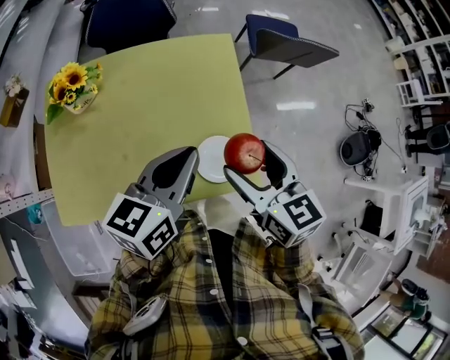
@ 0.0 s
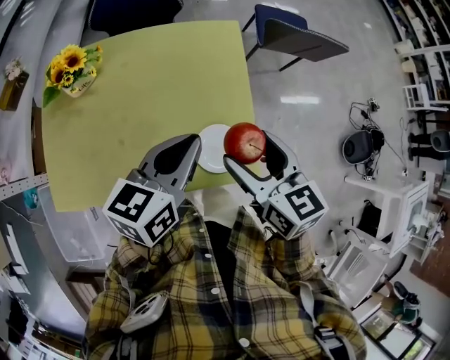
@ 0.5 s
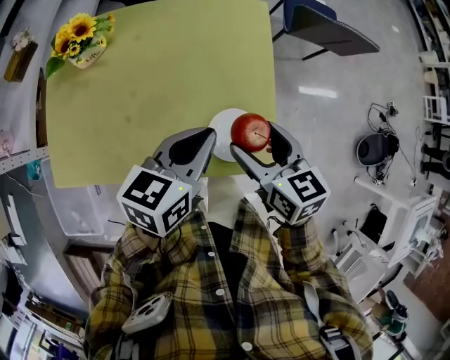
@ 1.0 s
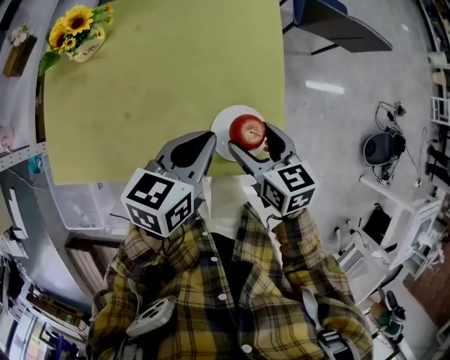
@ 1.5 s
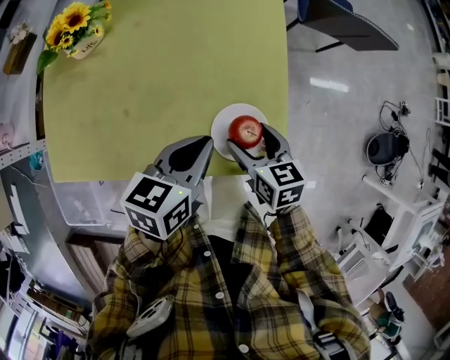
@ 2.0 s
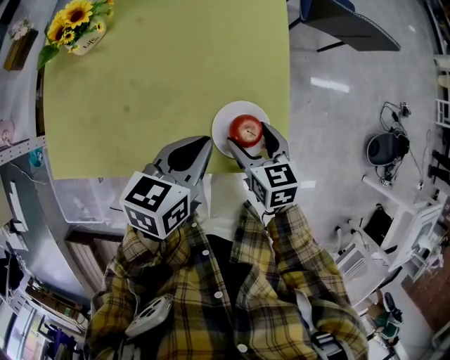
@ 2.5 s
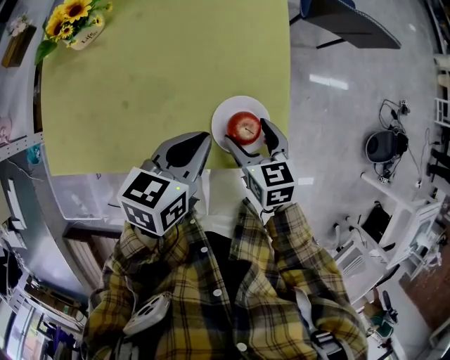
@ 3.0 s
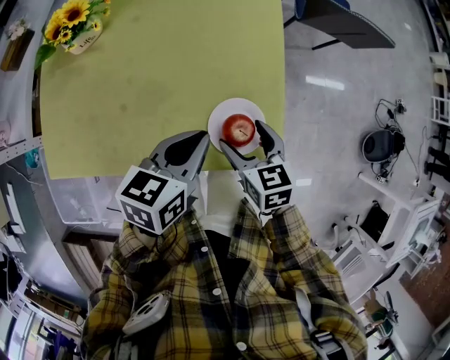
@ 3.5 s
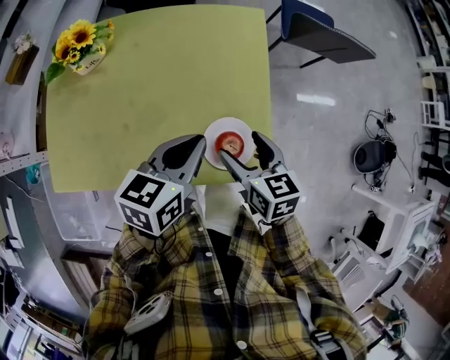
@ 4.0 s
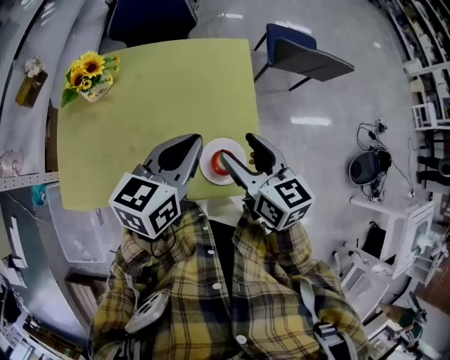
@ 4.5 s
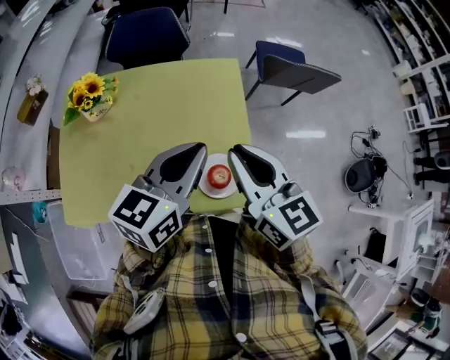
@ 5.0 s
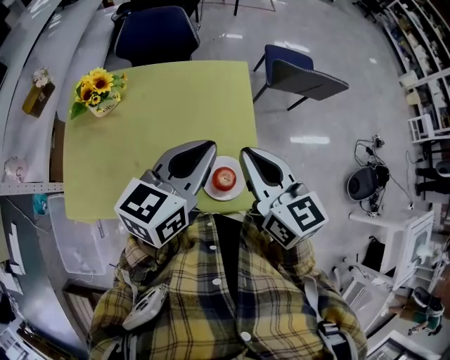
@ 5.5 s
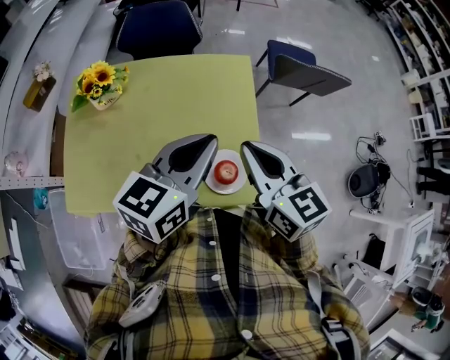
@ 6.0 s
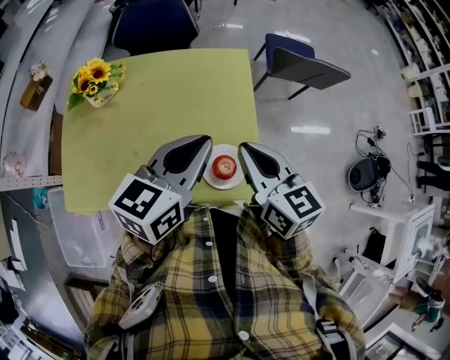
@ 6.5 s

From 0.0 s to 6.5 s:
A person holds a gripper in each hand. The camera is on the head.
From 0.0 s to 2.0 s: The grippers both shift downward by approximately 20 cm.
From 2.0 s to 4.5 s: Both grippers travel together upward, about 15 cm.
From 4.5 s to 6.5 s: The right gripper closes up.

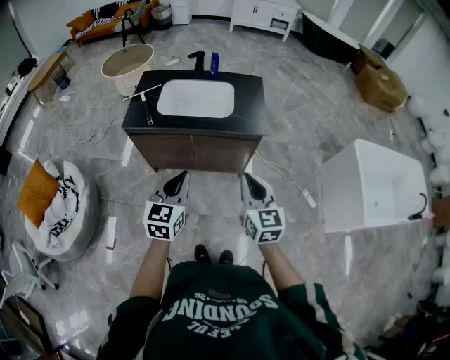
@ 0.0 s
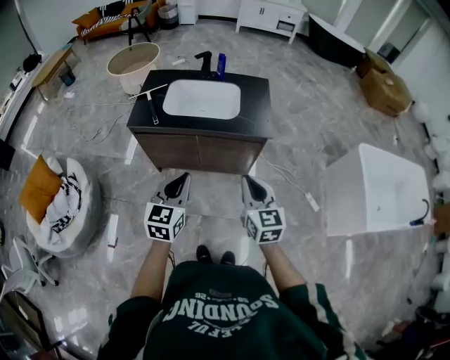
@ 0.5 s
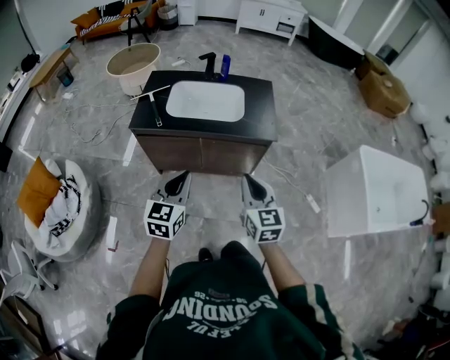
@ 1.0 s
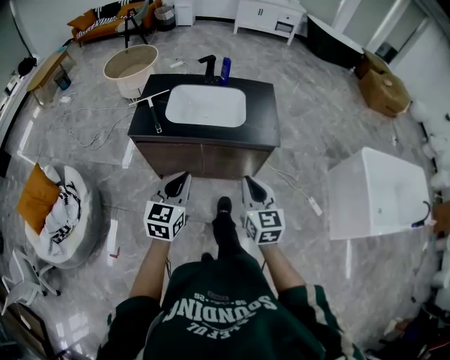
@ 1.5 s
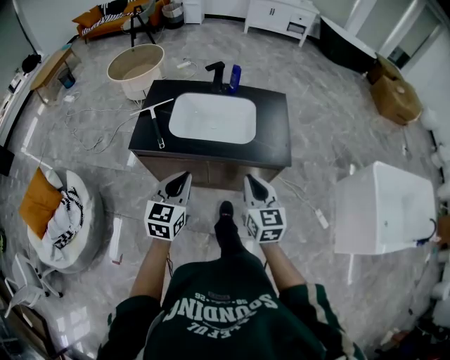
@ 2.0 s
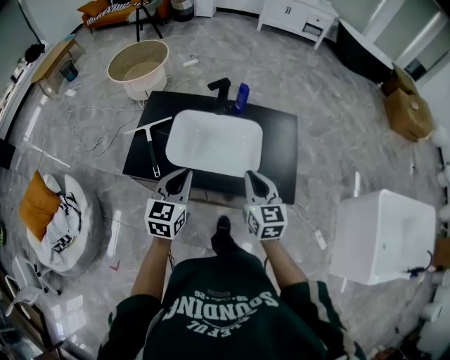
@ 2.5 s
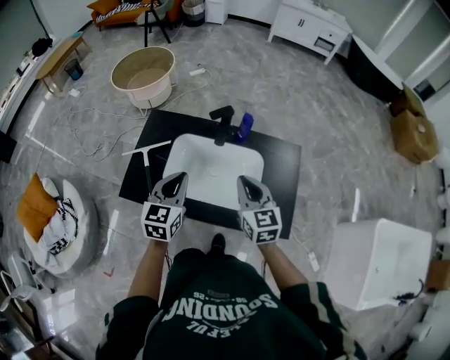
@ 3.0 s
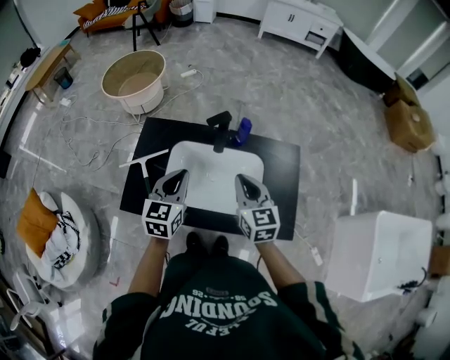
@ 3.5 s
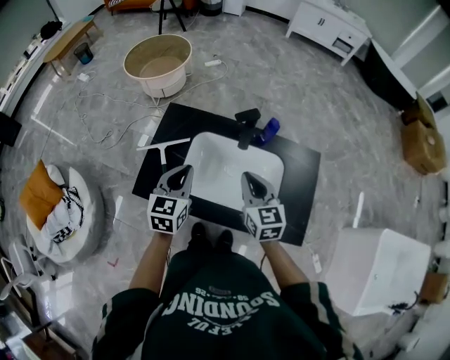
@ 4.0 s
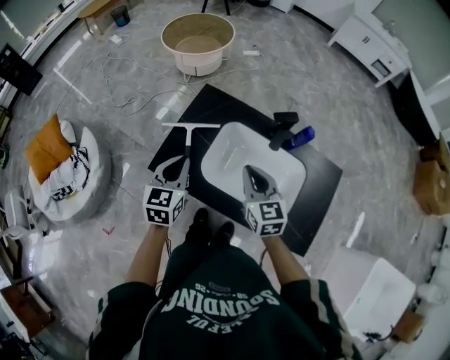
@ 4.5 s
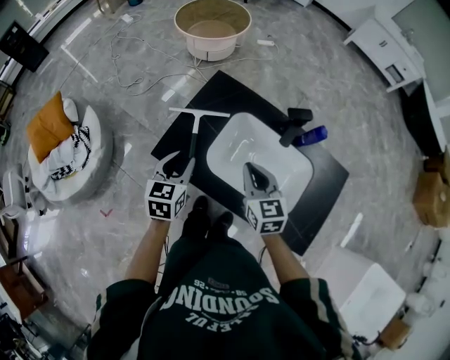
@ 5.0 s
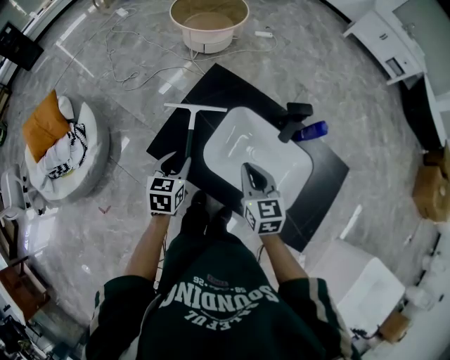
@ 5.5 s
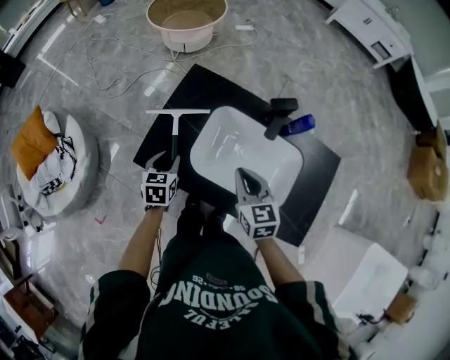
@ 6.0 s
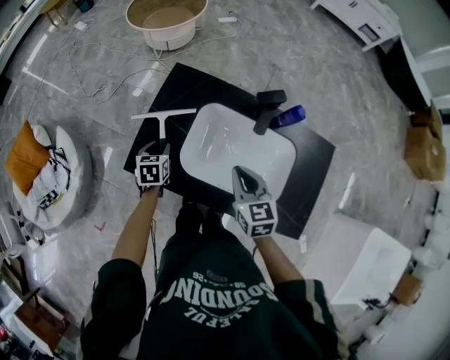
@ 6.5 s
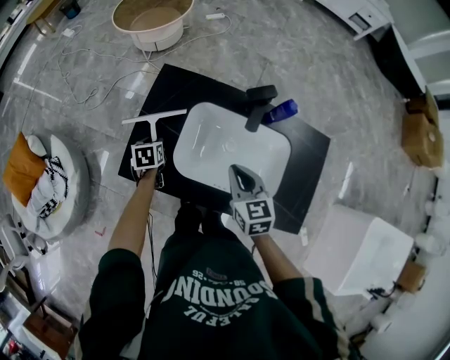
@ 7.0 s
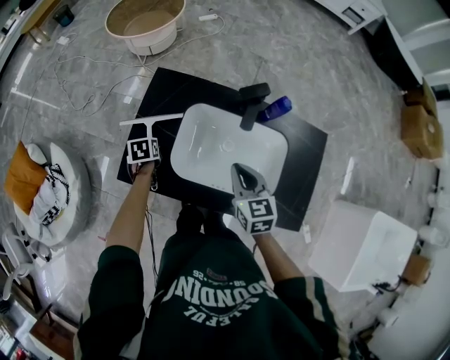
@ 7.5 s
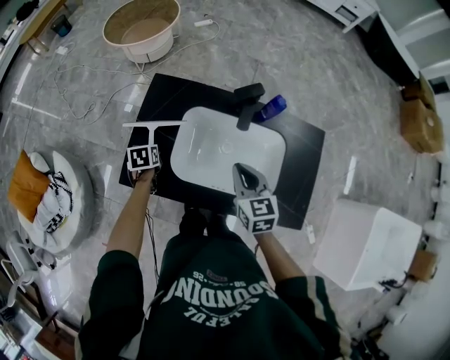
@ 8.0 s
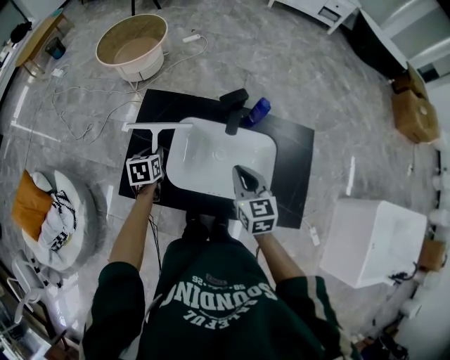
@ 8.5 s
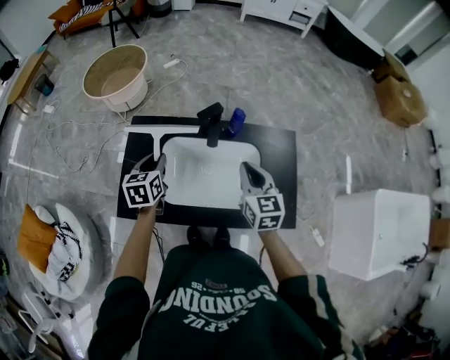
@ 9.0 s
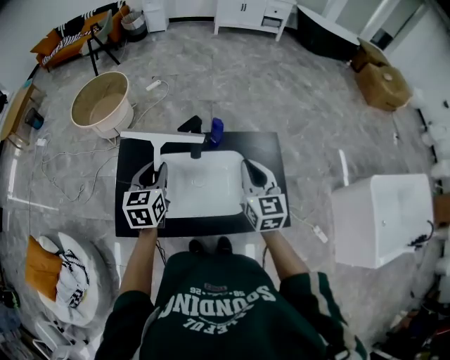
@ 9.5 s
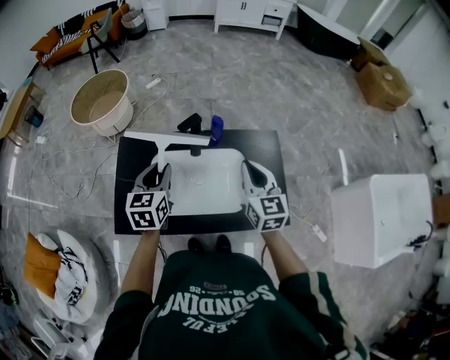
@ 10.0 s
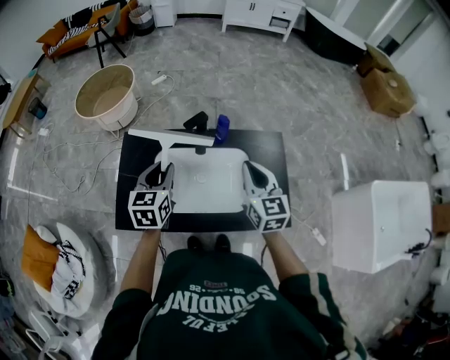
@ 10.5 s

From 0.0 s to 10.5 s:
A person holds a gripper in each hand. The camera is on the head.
From 0.0 s to 2.0 s: The grippers both shift forward and to the left by roughly 20 cm.
From 2.0 s to 4.0 s: Both grippers move forward, some 35 cm.
From 4.0 s to 6.5 s: The left gripper goes some 25 cm downward and to the left, rotates roughly 40 degrees, and opens up. The right gripper is displaced downward and to the left by about 10 cm.
From 6.5 s to 8.5 s: The left gripper travels upward and to the right by roughly 10 cm, while the right gripper moves to the right, approximately 5 cm.
From 8.5 s to 10.5 s: The right gripper travels to the right and upward by some 15 cm, and rotates about 20 degrees. The left gripper travels upward and to the right by some 25 cm, and changes its angle by some 30 degrees.

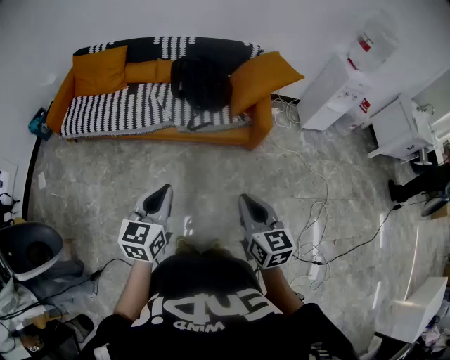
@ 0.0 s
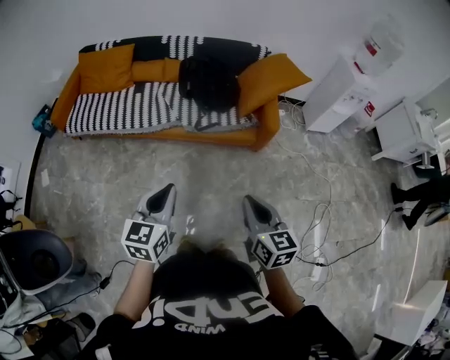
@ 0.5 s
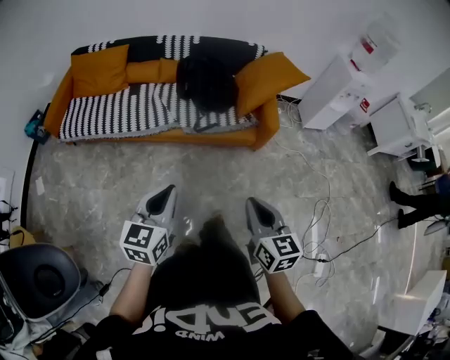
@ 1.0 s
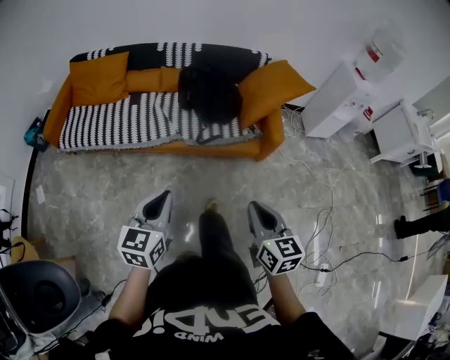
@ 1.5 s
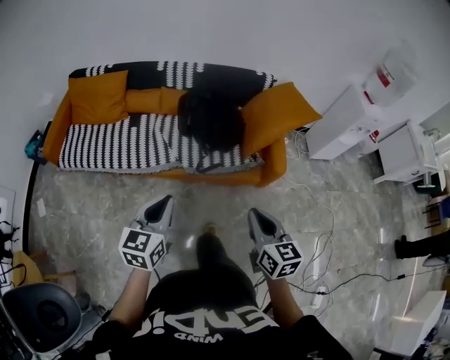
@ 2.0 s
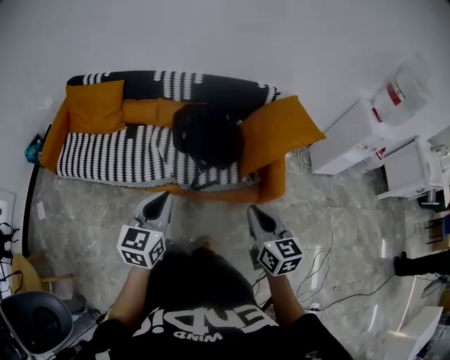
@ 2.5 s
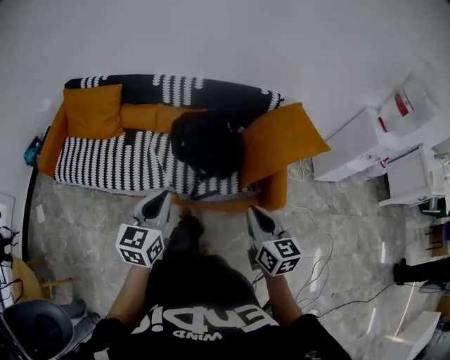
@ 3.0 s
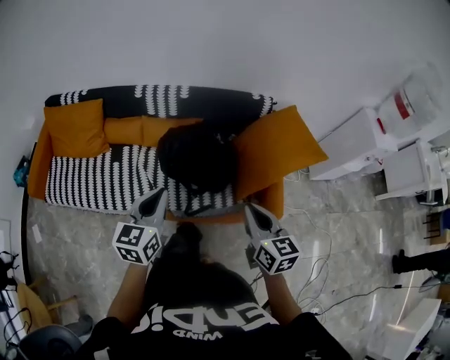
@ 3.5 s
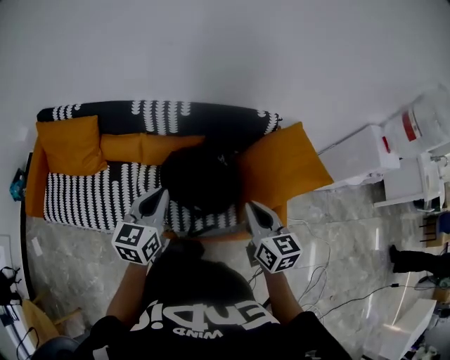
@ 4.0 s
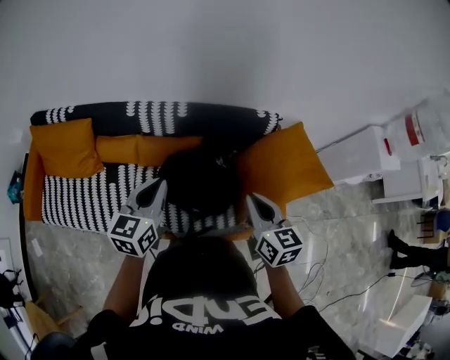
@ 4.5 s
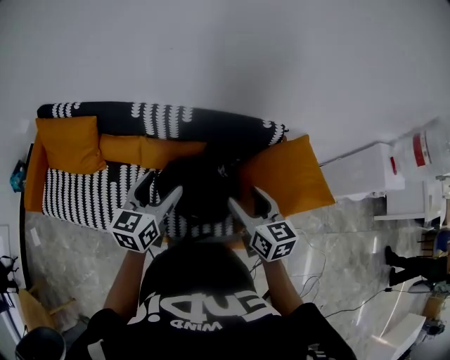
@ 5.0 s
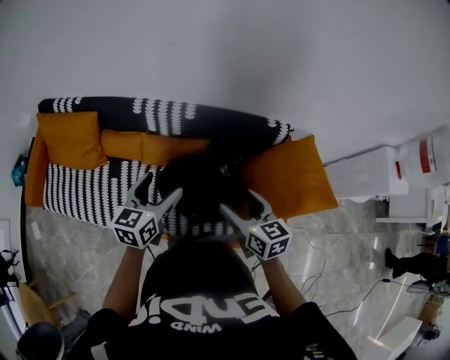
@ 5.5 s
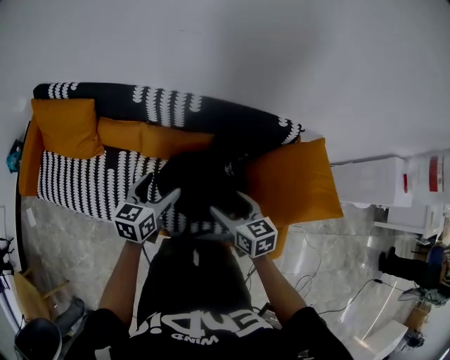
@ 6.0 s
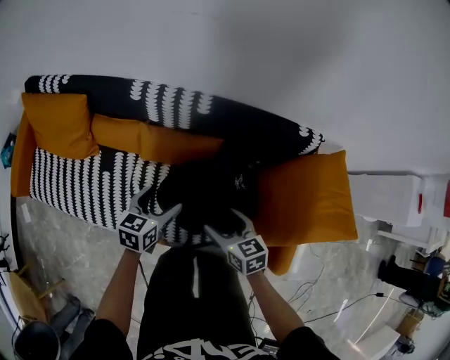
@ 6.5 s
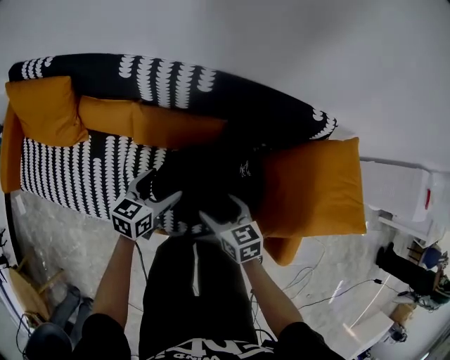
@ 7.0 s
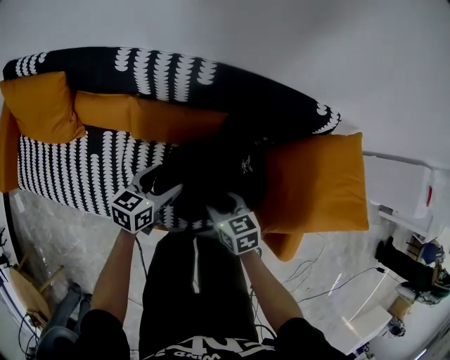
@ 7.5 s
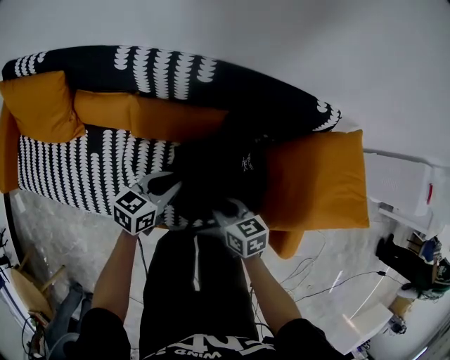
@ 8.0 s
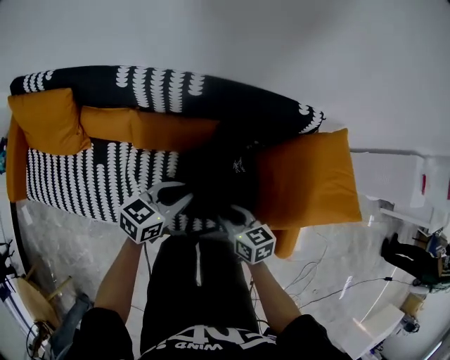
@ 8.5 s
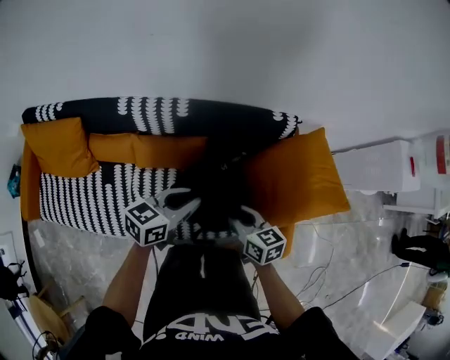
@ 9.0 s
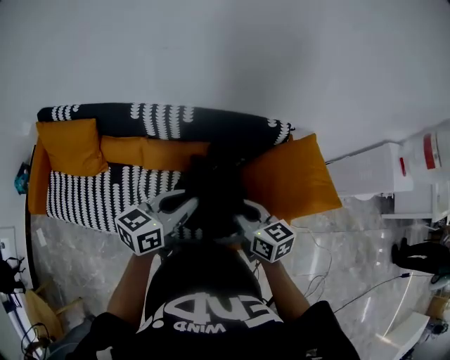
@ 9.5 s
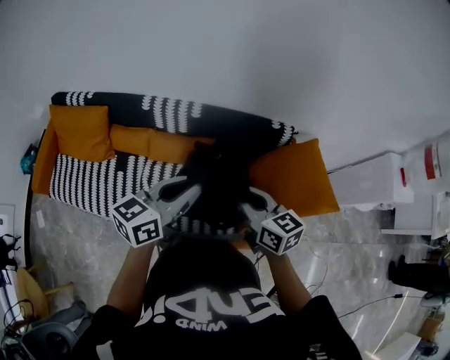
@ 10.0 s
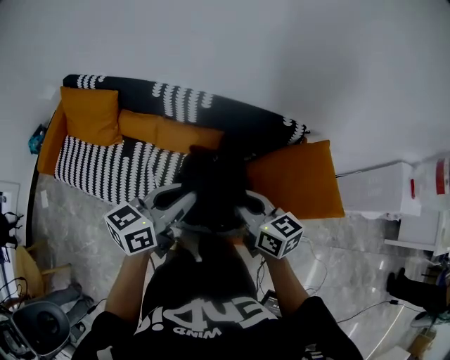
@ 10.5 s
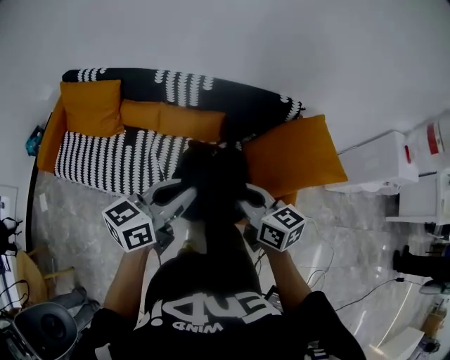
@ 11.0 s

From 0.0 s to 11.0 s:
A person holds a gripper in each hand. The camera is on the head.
From 0.0 s to 2.0 s: The grippers both shift forward by roughly 25 cm.
From 2.0 s to 3.5 s: The grippers both shift forward by about 35 cm.
From 3.5 s to 5.5 s: Both grippers move forward, about 30 cm. The right gripper opens. Meanwhile the left gripper opens its fingers.
From 5.5 s to 7.5 s: Both grippers travel together downward, approximately 30 cm. The left gripper turns by roughly 20 degrees. The right gripper swivels some 20 degrees, and closes.
From 7.5 s to 9.0 s: The grippers both shift upward and to the right by about 25 cm. The right gripper turns by some 20 degrees. Meanwhile the left gripper turns by some 20 degrees, and closes up.
From 9.0 s to 11.0 s: The two grippers go roughly 30 cm backward and upward.
